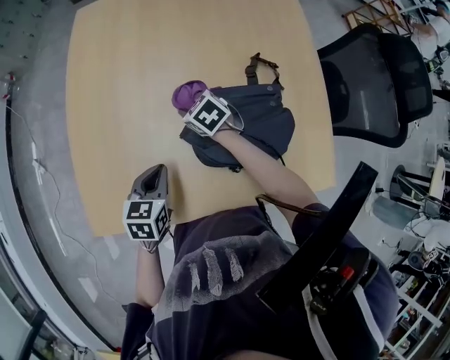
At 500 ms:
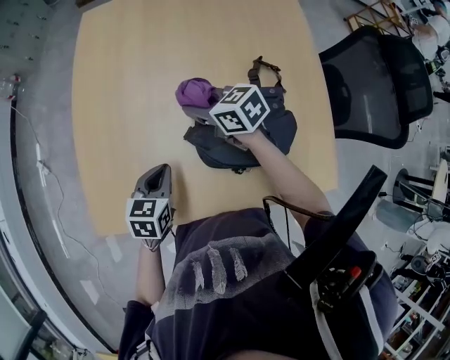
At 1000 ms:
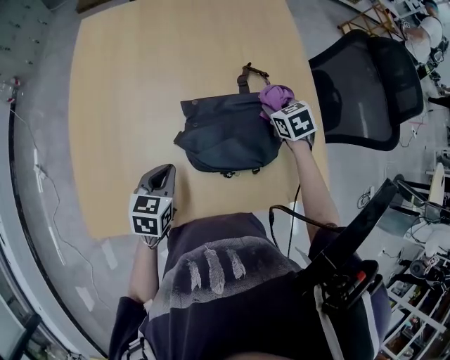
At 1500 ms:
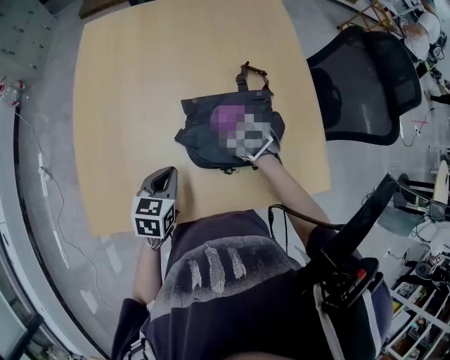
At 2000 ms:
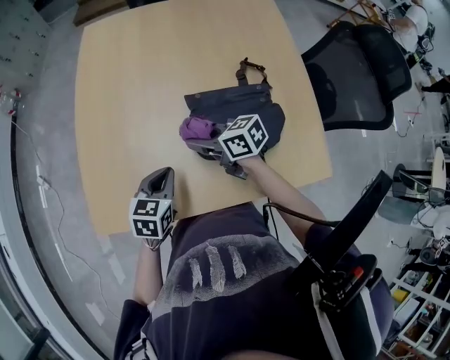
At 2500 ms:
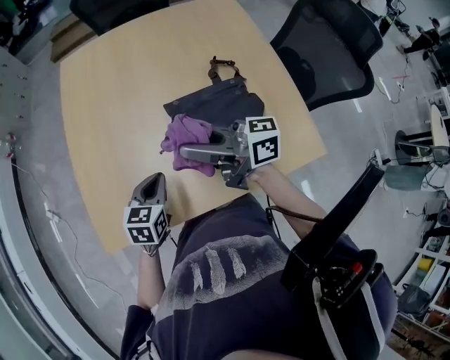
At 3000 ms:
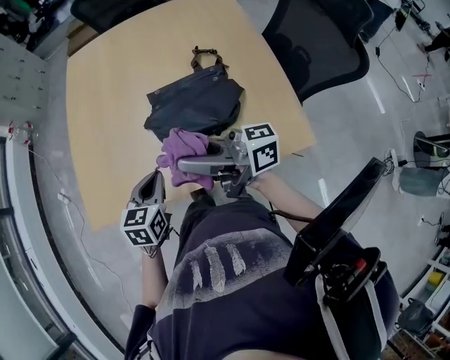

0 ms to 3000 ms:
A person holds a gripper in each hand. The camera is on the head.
0 ms to 1500 ms: The right gripper goes upward and returns, approximately 10 cm each way. The left gripper ends up some 5 cm from where it was.
1500 ms to 3000 ms: The right gripper heads upward and backward, covering some 35 cm, and tilts its fingers roughly 80 degrees upward, while the left gripper moves backward and upward, approximately 15 cm.

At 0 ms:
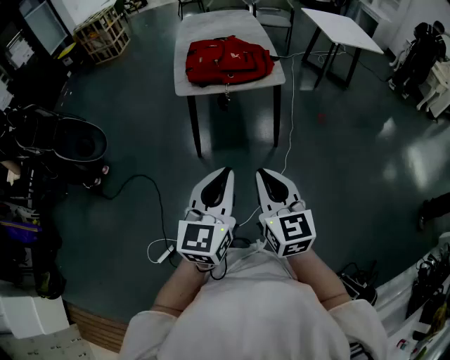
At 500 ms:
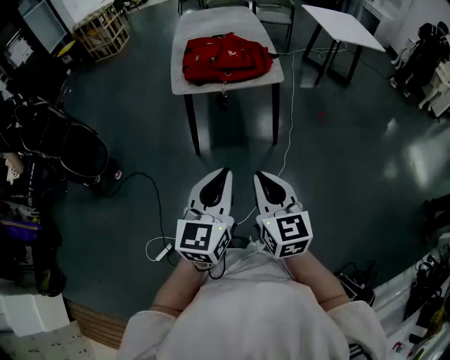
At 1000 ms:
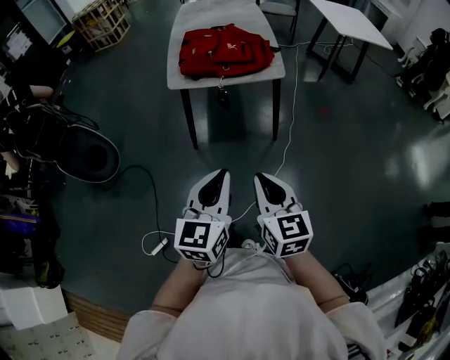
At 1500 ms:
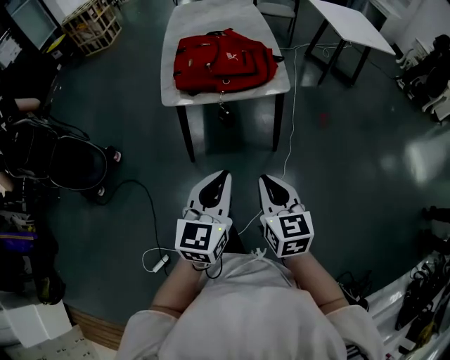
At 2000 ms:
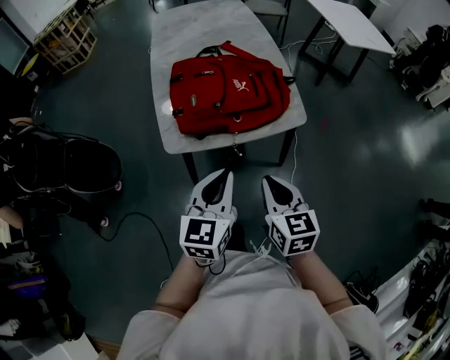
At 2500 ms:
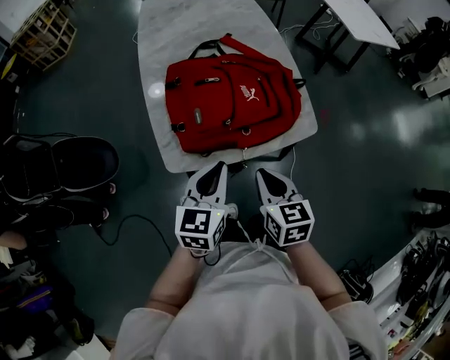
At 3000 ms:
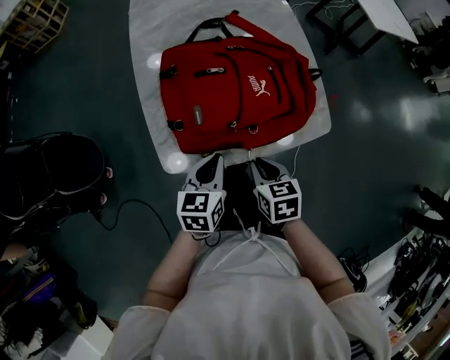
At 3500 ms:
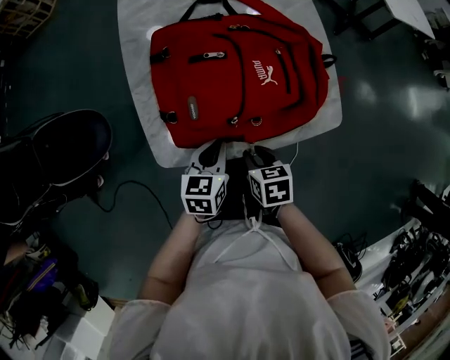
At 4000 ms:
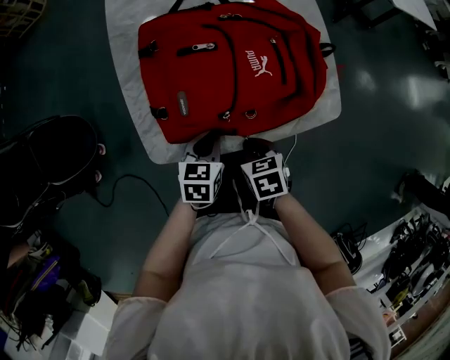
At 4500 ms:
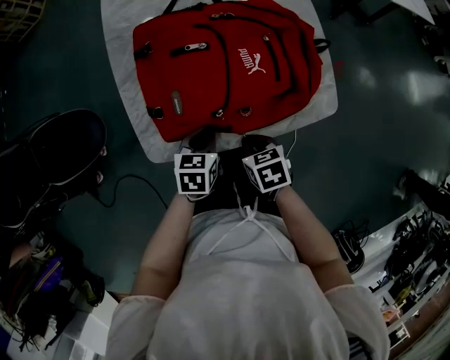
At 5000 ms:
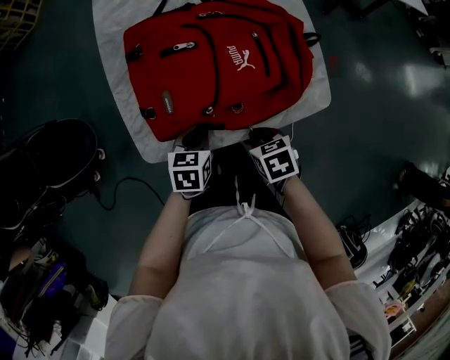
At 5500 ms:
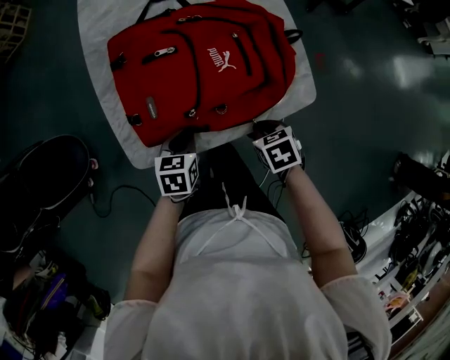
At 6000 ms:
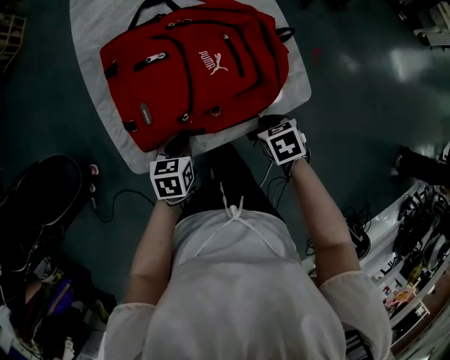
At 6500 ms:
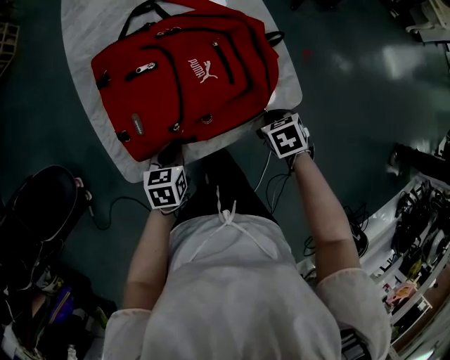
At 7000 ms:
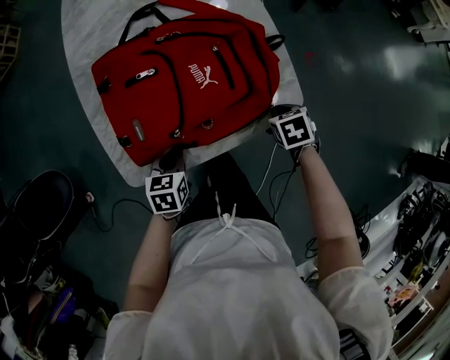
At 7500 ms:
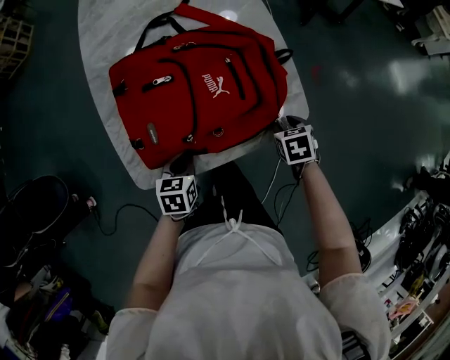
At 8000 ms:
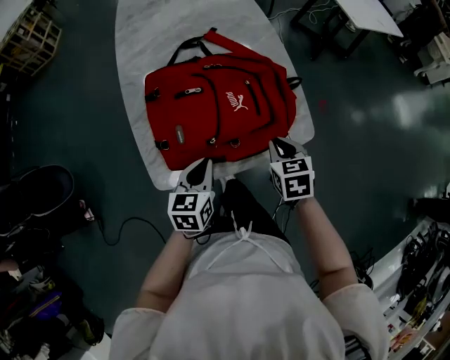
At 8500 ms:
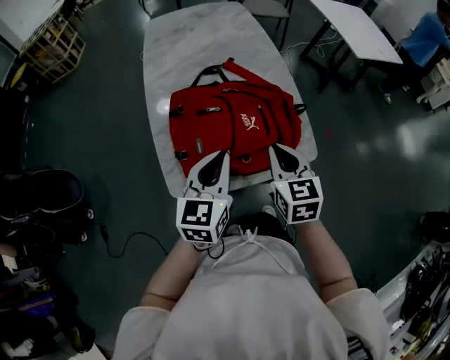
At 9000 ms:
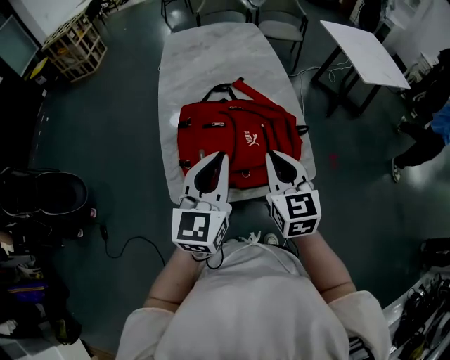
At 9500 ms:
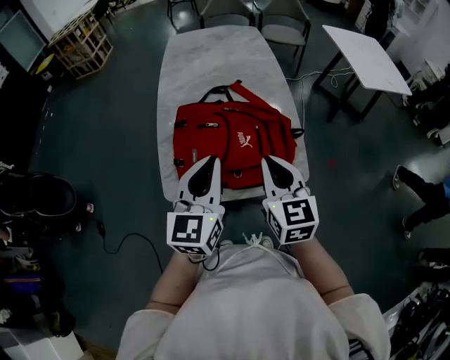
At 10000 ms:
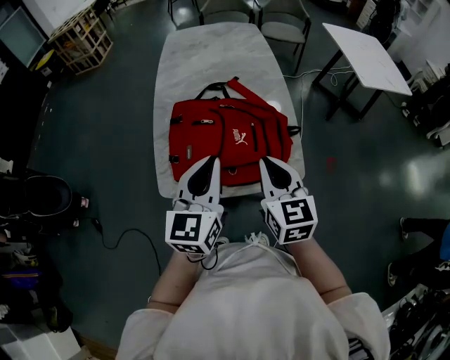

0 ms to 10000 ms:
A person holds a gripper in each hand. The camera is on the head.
0 ms to 2000 ms: The grippers both shift forward by approximately 40 cm.
2000 ms to 4000 ms: The grippers both shift downward and forward by approximately 30 cm. The right gripper angles its fingers downward, by roughly 40 degrees, while the left gripper angles its fingers downward, by roughly 30 degrees.
4000 ms to 6000 ms: The right gripper moves to the right, some 15 cm.
6000 ms to 8000 ms: Both grippers move upward, about 10 cm. The right gripper swivels some 20 degrees, and opens, then closes again.
8000 ms to 10000 ms: The grippers both shift upward by roughly 20 cm. The left gripper turns by about 30 degrees; the right gripper tips its fingers upward by approximately 30 degrees.

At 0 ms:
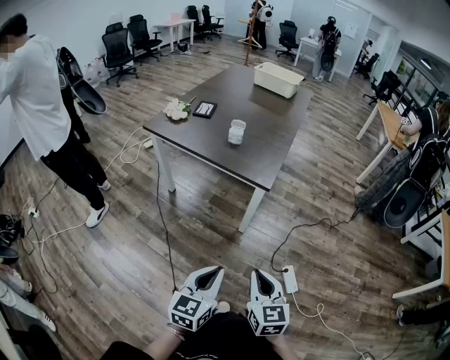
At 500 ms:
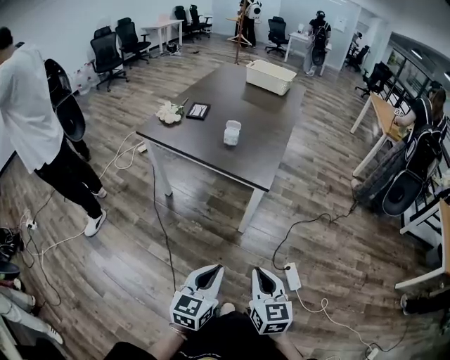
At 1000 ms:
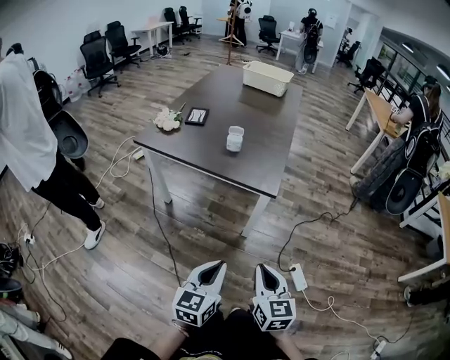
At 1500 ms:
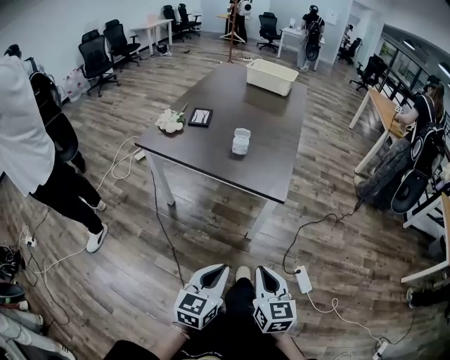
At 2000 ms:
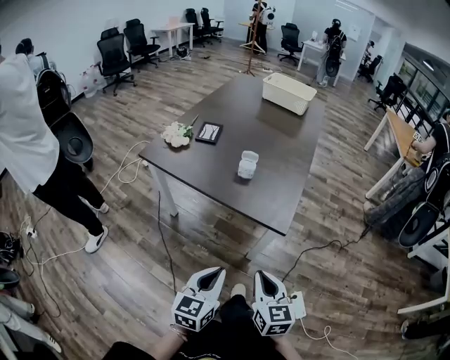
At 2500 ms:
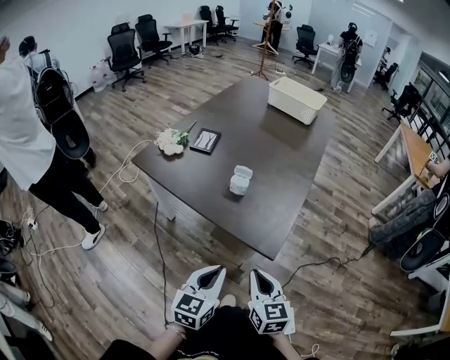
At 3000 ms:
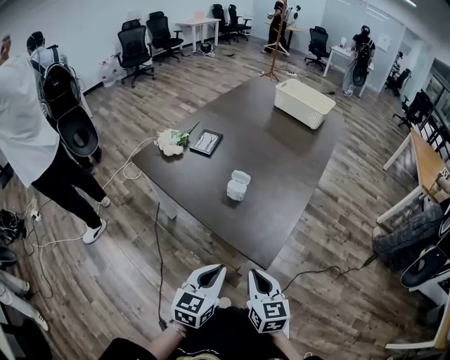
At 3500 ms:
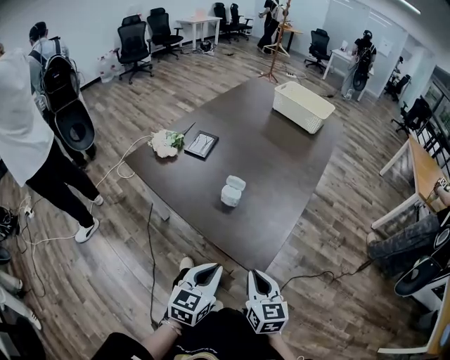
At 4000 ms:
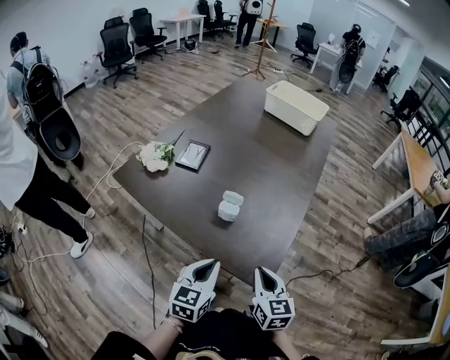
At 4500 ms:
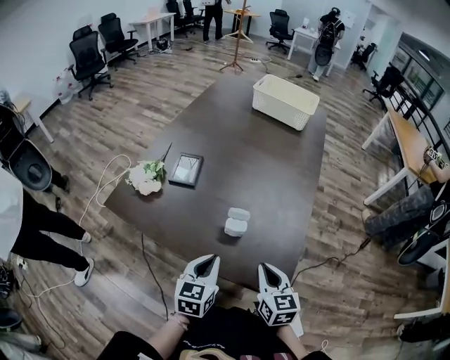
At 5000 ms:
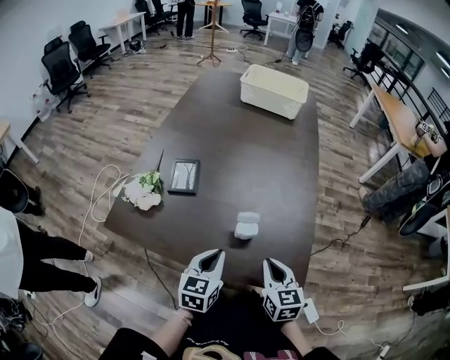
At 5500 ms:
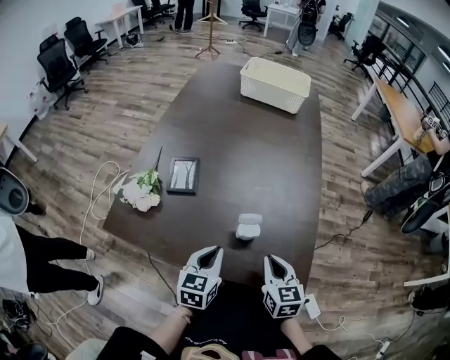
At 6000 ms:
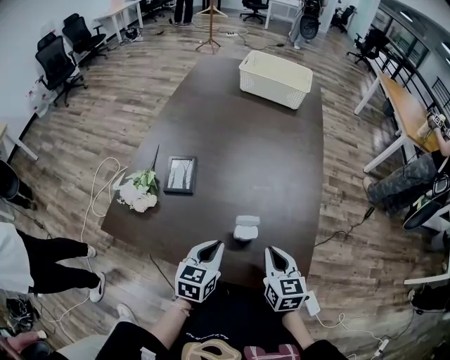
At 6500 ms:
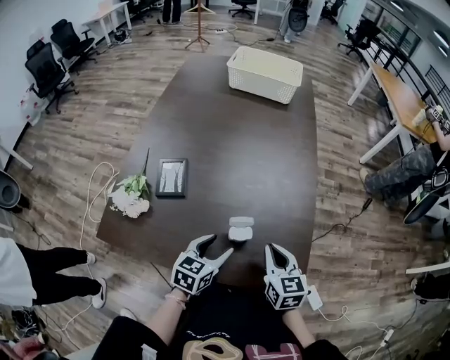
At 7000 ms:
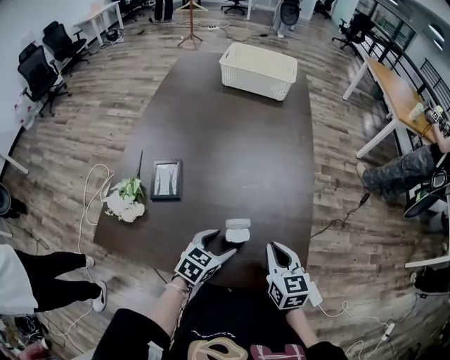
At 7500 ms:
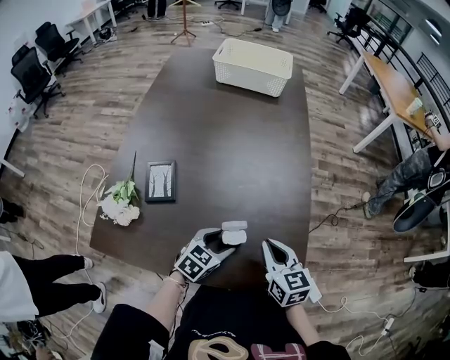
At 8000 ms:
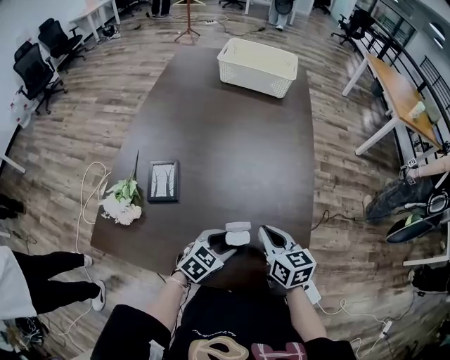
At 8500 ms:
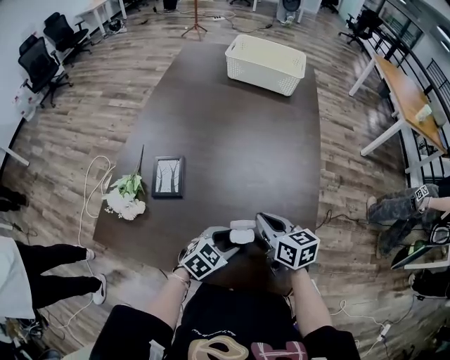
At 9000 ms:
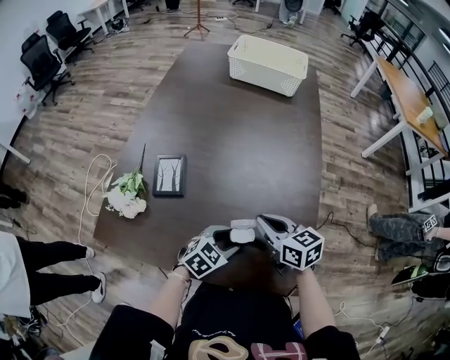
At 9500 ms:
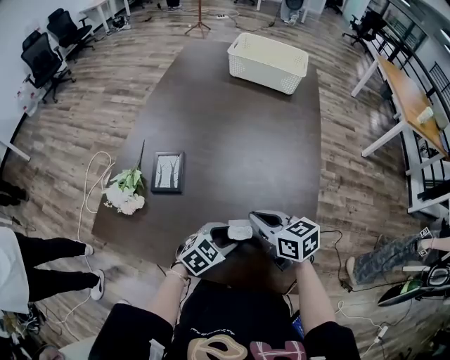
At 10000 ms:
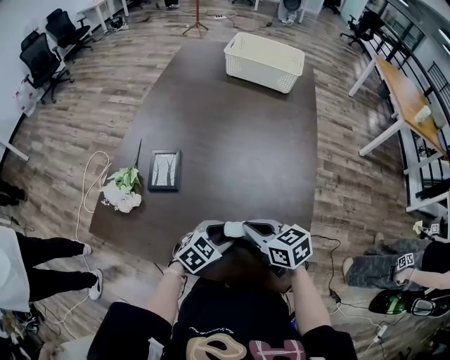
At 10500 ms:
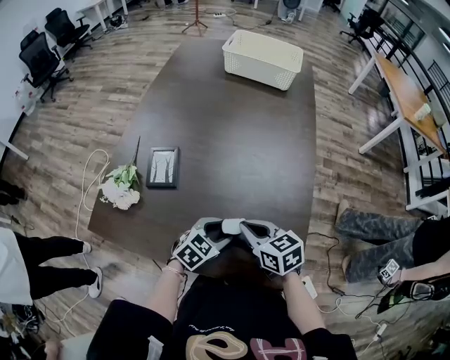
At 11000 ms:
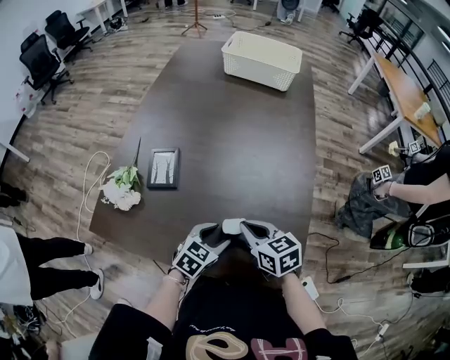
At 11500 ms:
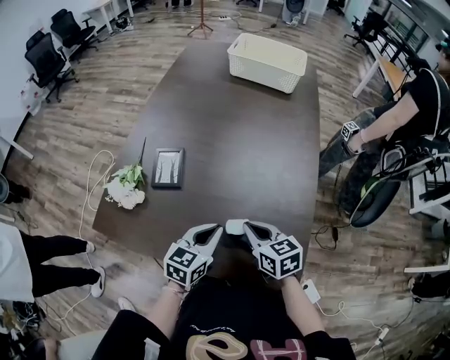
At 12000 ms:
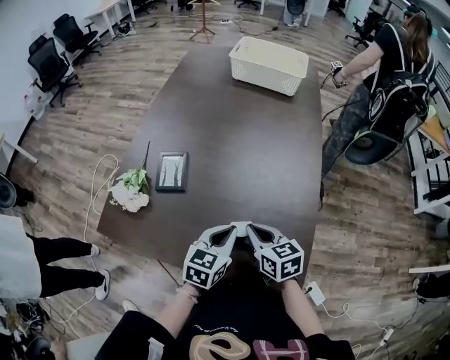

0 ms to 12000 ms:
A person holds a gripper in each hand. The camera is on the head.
0 ms to 2000 ms: Both grippers travel together forward and to the left, roughly 20 cm.
2000 ms to 4000 ms: The two grippers go approximately 25 cm forward.
4000 ms to 6000 ms: Both grippers move forward and to the left, roughly 20 cm.
6000 ms to 8000 ms: The left gripper is displaced downward, to the right and forward by some 10 cm, turns by some 40 degrees, and opens. Meanwhile the right gripper shifts approximately 10 cm forward.
8000 ms to 10000 ms: The right gripper moves some 5 cm, and swivels roughly 30 degrees.
10000 ms to 12000 ms: The left gripper heads upward, covering some 10 cm, turns by about 30 degrees, and closes up.

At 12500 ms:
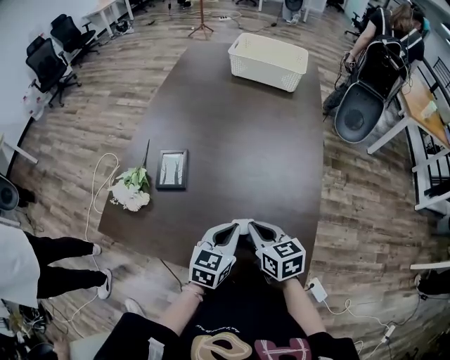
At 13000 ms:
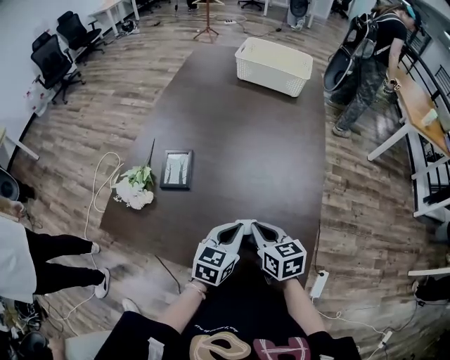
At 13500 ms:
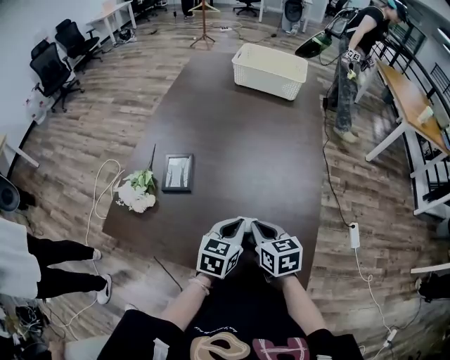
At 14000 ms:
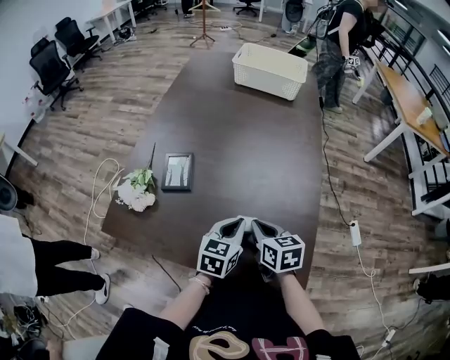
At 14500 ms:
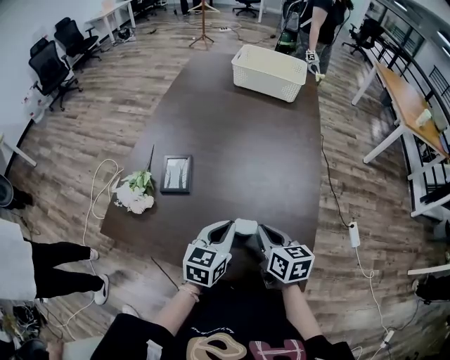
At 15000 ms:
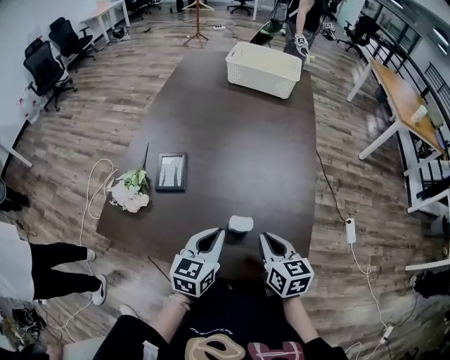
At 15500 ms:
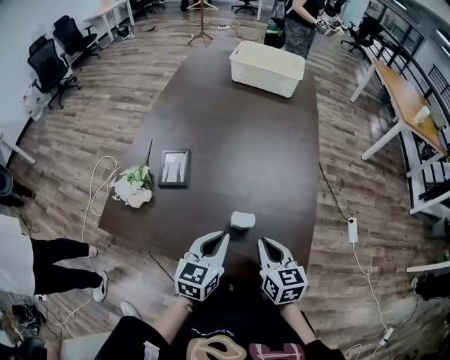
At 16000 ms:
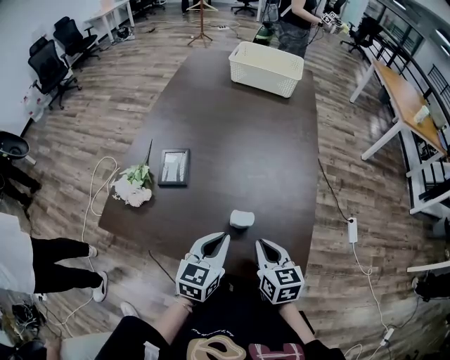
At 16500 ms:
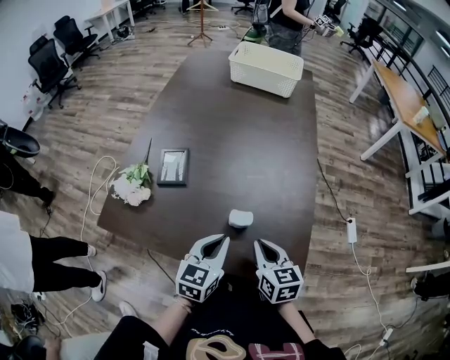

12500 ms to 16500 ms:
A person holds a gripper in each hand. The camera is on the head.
12500 ms to 14500 ms: The grippers make only small movements.
14500 ms to 16500 ms: Both grippers move backward, about 5 cm.
